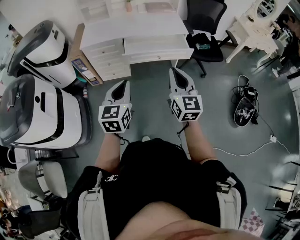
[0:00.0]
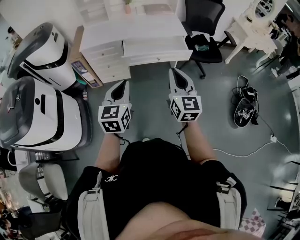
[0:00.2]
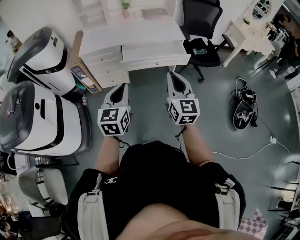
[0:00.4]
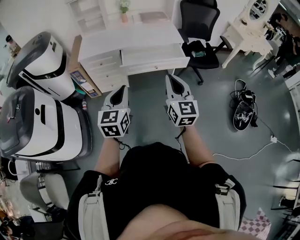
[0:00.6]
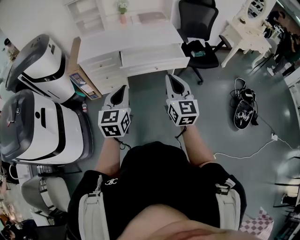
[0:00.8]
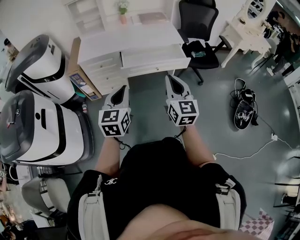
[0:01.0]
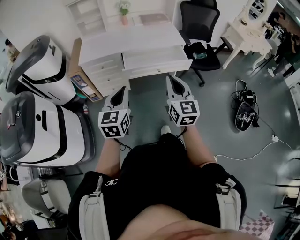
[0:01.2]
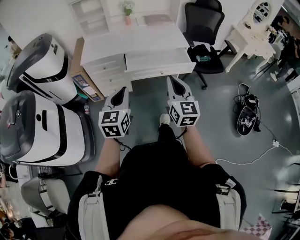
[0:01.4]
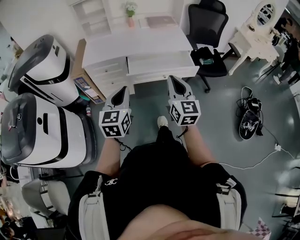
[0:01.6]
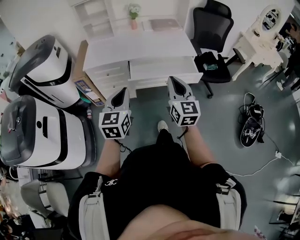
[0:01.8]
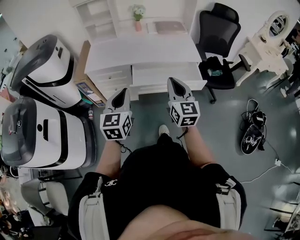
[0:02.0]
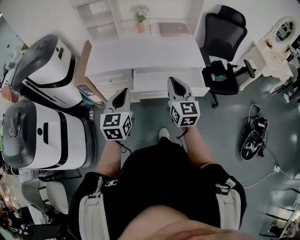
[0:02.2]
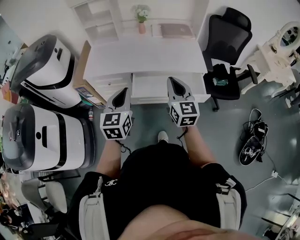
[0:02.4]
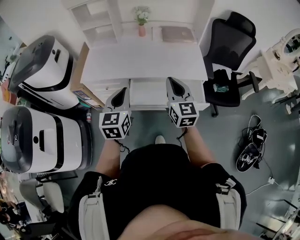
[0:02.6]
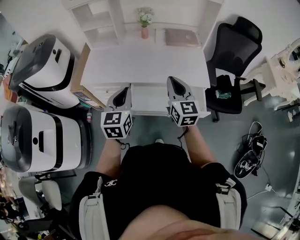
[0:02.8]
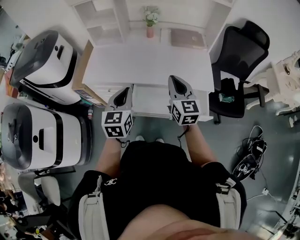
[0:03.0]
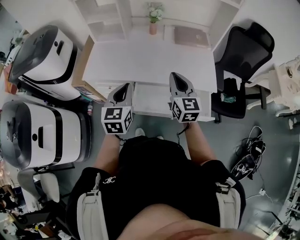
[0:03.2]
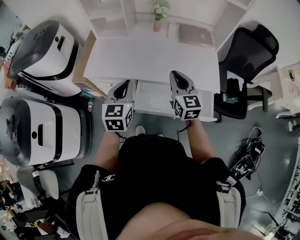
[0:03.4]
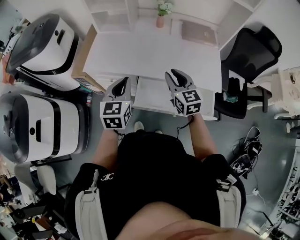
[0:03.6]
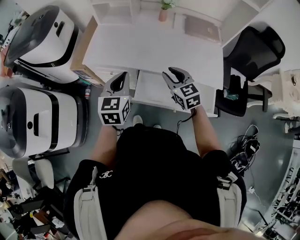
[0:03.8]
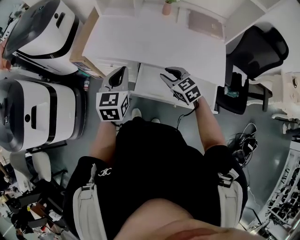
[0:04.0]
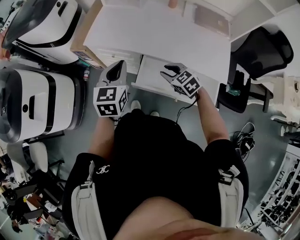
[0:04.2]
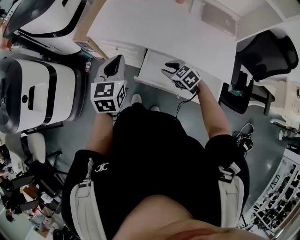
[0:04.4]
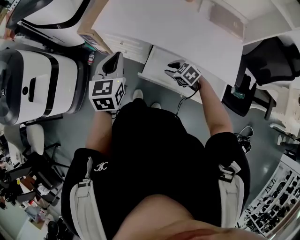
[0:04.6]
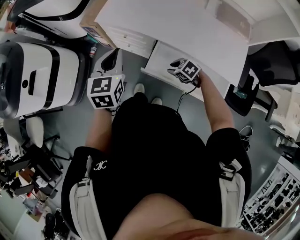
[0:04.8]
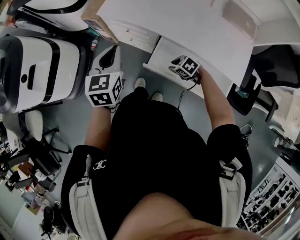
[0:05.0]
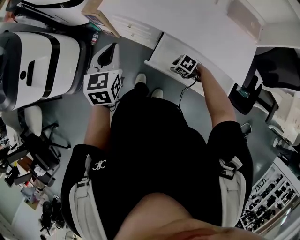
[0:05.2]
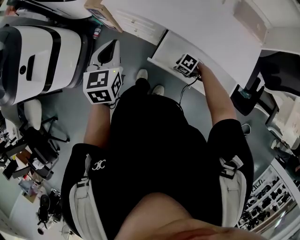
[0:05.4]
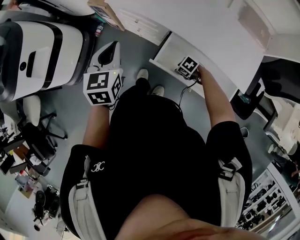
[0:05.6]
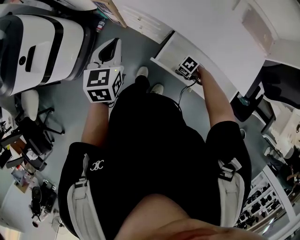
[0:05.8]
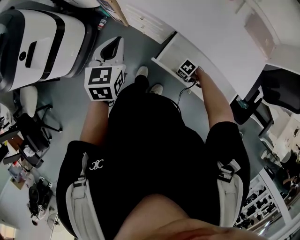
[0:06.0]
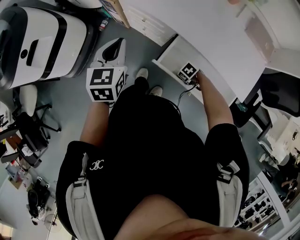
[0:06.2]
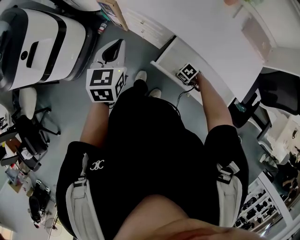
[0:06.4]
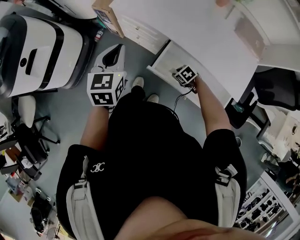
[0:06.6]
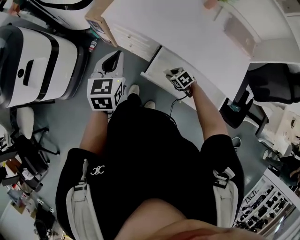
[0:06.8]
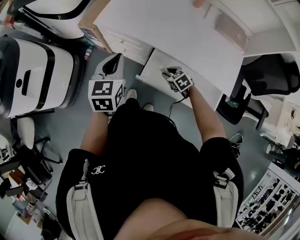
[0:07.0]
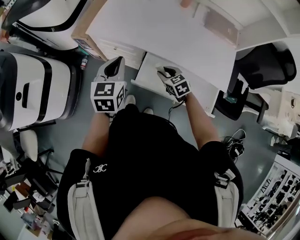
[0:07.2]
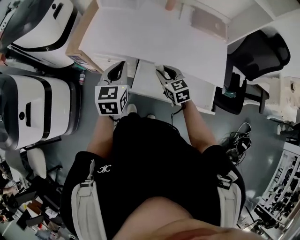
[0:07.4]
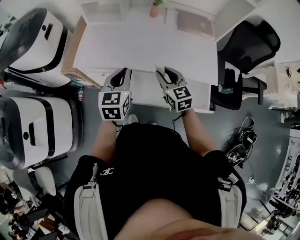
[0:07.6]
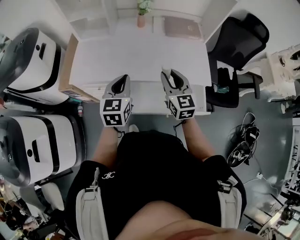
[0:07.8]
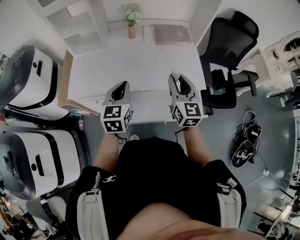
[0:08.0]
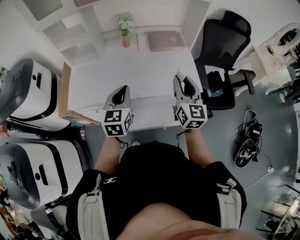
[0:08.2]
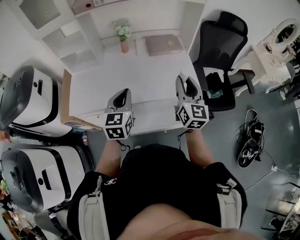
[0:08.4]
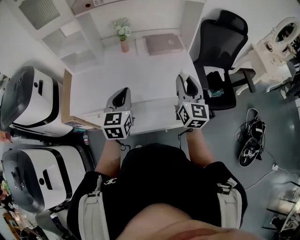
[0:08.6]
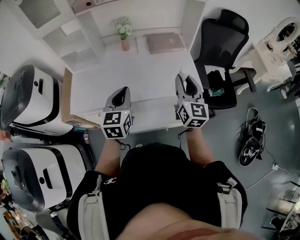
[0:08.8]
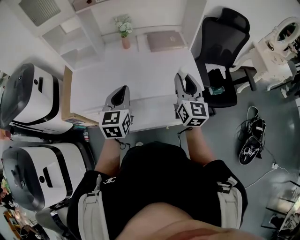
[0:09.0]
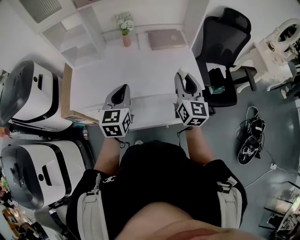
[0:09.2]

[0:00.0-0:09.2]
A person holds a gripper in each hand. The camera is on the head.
0:00.0 to 0:01.6: The two grippers go about 10 cm forward.
0:01.6 to 0:03.0: The grippers both shift forward by approximately 40 cm.
0:03.0 to 0:04.6: The left gripper changes place by roughly 15 cm. Meanwhile the right gripper heads downward, covering roughly 30 cm, tilts its fingers roughly 50 degrees downward, and opens its fingers.
0:04.6 to 0:06.2: The left gripper ends up approximately 10 cm from where it was; the right gripper goes roughly 20 cm downward, and turns by approximately 30 degrees.
0:06.2 to 0:07.6: The right gripper shifts approximately 35 cm upward, and points its fingers some 50 degrees further upward; the left gripper changes place by some 20 cm, and changes its angle by about 30 degrees.
0:07.6 to 0:09.2: The left gripper moves to the right and upward, some 10 cm. The right gripper is displaced to the right and upward by roughly 25 cm, and changes its angle by some 40 degrees.

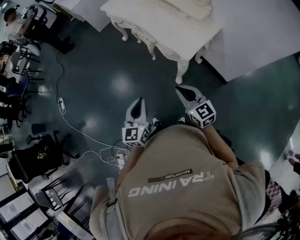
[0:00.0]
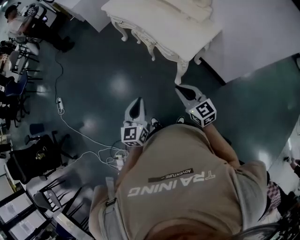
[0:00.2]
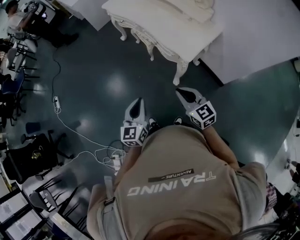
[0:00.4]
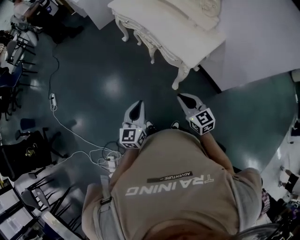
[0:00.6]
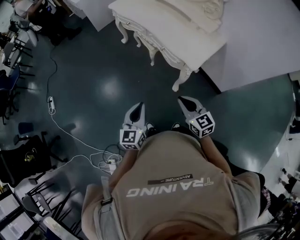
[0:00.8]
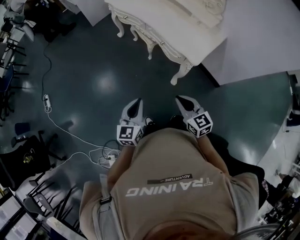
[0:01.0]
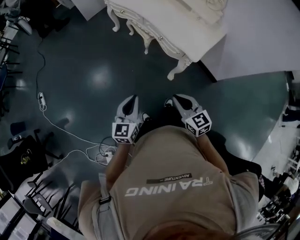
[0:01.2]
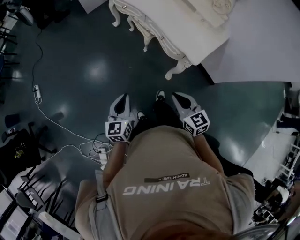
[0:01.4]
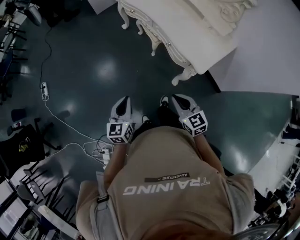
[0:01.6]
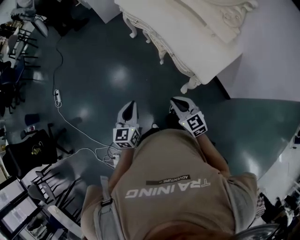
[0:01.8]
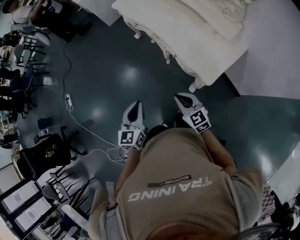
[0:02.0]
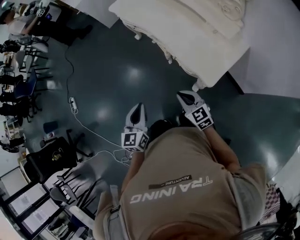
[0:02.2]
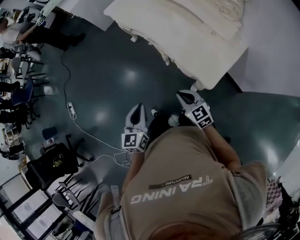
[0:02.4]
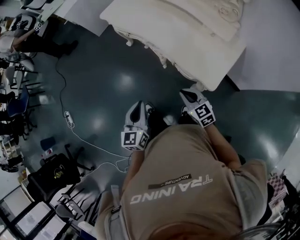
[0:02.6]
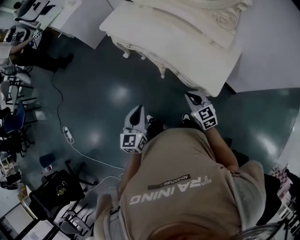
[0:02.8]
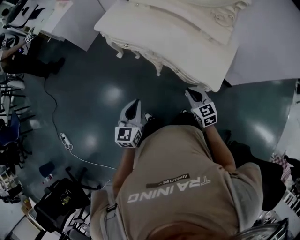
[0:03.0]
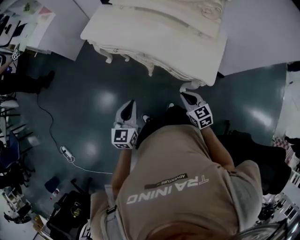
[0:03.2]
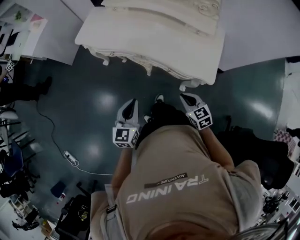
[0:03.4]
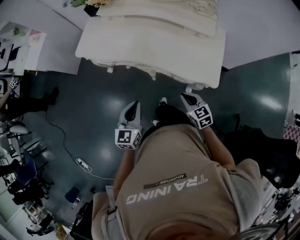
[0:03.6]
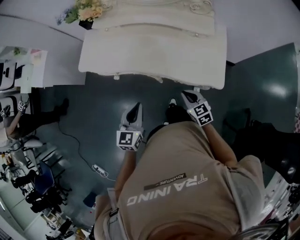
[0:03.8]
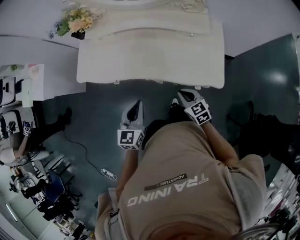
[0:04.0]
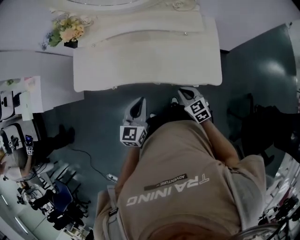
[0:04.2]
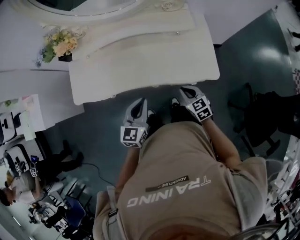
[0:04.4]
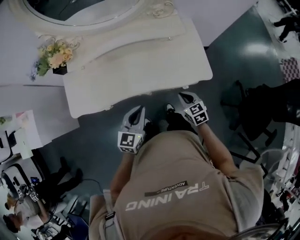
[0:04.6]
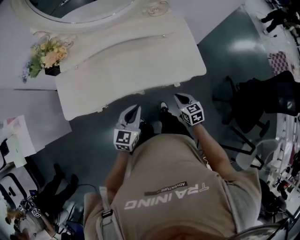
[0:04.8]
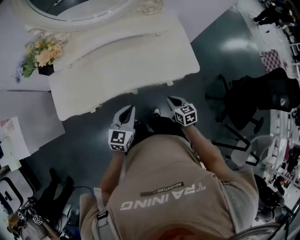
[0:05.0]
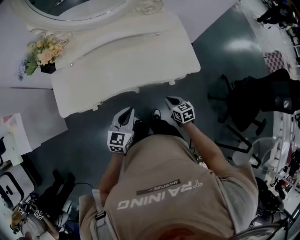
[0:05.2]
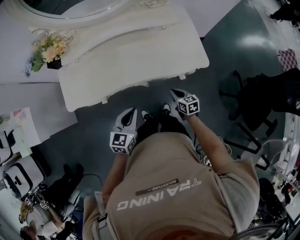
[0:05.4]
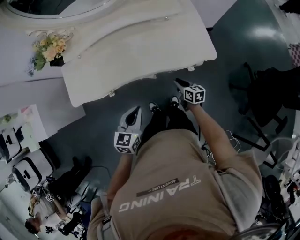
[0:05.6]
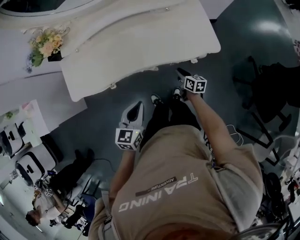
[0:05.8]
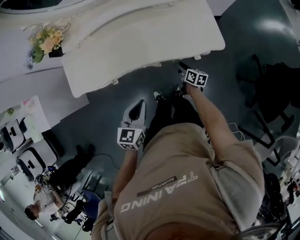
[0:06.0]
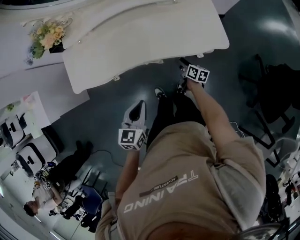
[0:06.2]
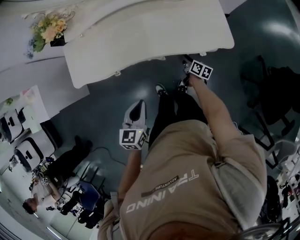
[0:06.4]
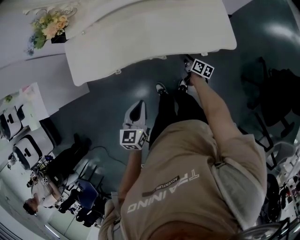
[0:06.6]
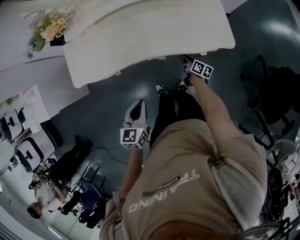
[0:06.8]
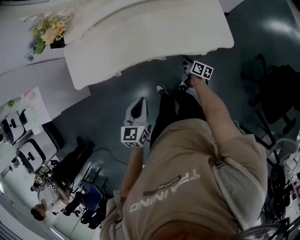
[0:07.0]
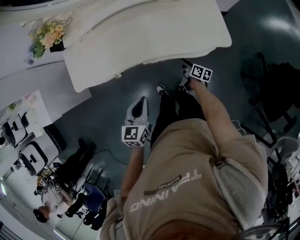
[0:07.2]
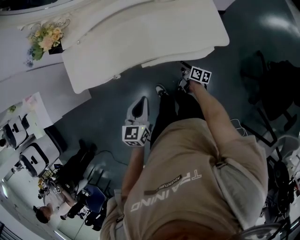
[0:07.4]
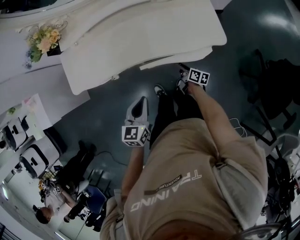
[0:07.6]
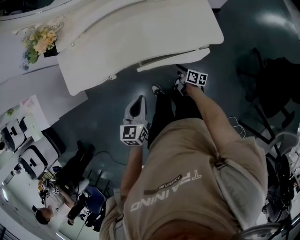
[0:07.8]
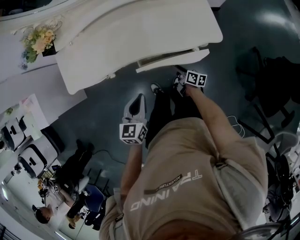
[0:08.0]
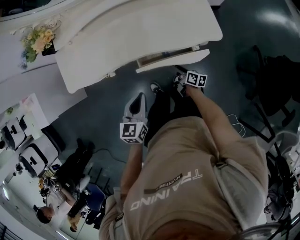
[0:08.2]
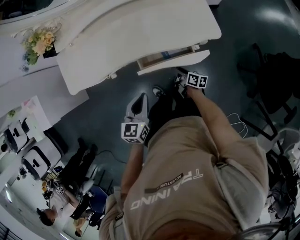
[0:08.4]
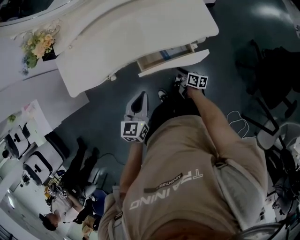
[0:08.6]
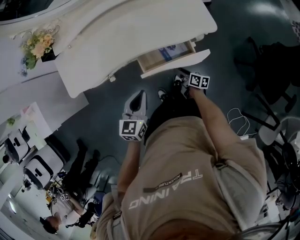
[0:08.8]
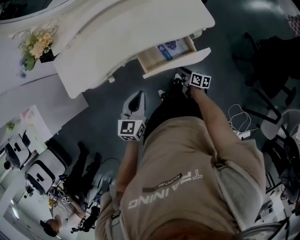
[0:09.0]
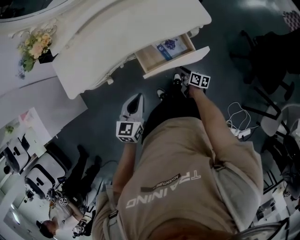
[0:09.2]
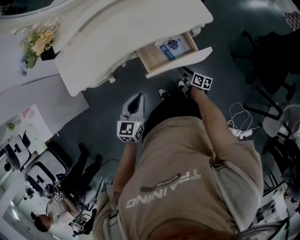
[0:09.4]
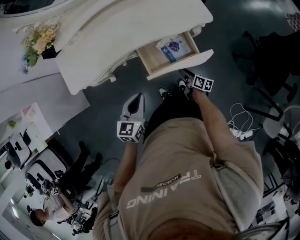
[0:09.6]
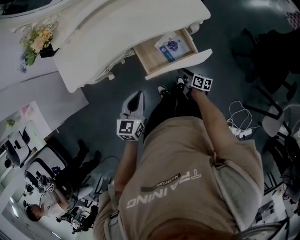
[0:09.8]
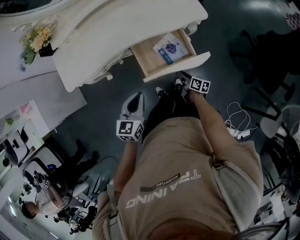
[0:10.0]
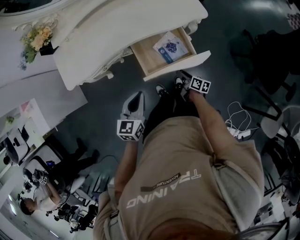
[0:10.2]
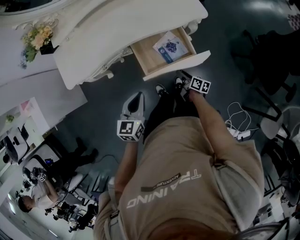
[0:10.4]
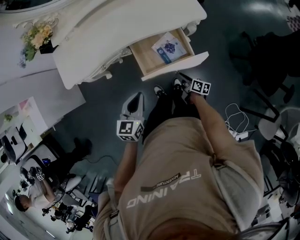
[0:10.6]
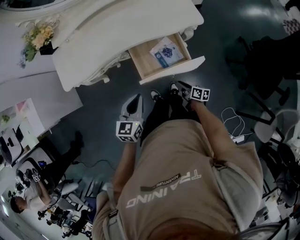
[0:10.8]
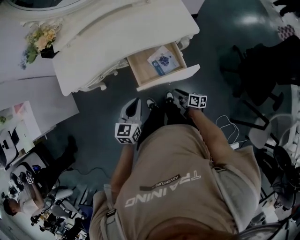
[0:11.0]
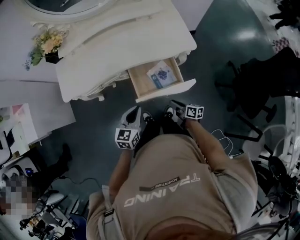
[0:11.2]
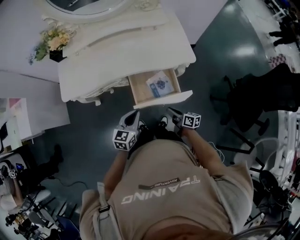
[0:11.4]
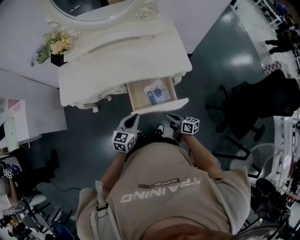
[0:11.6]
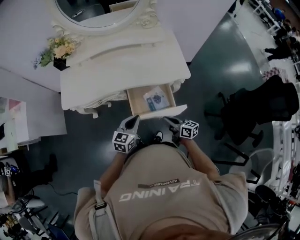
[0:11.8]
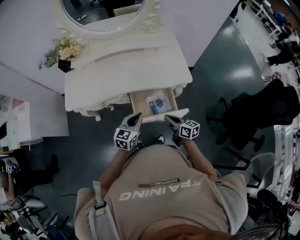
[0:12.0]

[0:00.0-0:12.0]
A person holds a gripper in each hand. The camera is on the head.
0:00.0 to 0:01.6: The two grippers go some 20 cm forward, to the left and downward.
0:01.6 to 0:03.0: The left gripper moves about 25 cm, and turns by some 30 degrees. Meanwhile the right gripper ends up about 20 cm from where it was, and rotates roughly 20 degrees.
0:03.0 to 0:04.4: The right gripper shifts by roughly 20 cm, and rotates about 30 degrees; the left gripper ends up approximately 30 cm from where it was, and turns by some 40 degrees.
0:04.4 to 0:06.0: The left gripper travels backward and downward by roughly 10 cm. Meanwhile the right gripper travels downward by approximately 20 cm, rolls clockwise, seen from behind, by roughly 60 degrees, and opens its fingers.
0:07.6 to 0:09.0: The right gripper is displaced backward by some 10 cm.
0:09.0 to 0:10.4: The two grippers go some 10 cm backward.
0:10.4 to 0:12.0: The right gripper goes roughly 25 cm upward, changes its angle by roughly 40 degrees, and closes its fingers; the left gripper heads upward, covering approximately 5 cm.

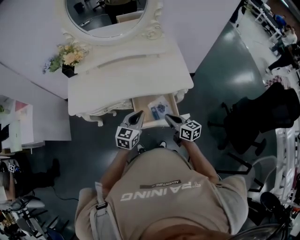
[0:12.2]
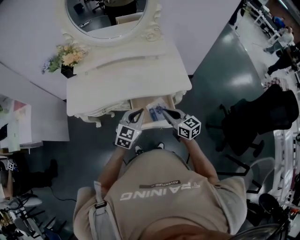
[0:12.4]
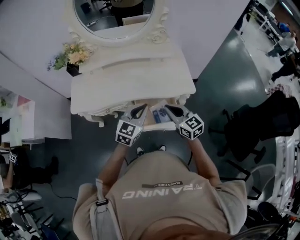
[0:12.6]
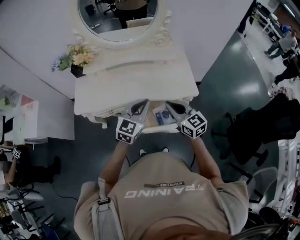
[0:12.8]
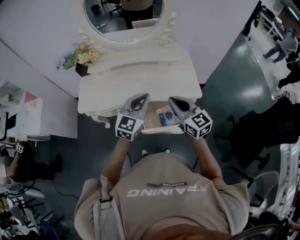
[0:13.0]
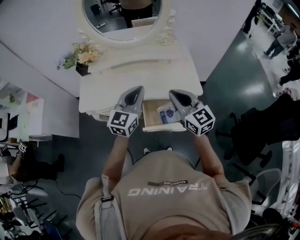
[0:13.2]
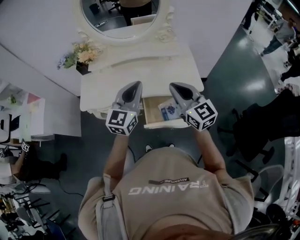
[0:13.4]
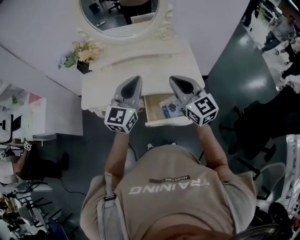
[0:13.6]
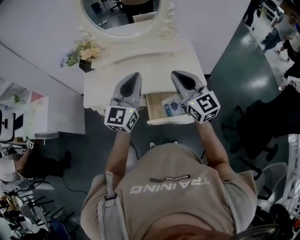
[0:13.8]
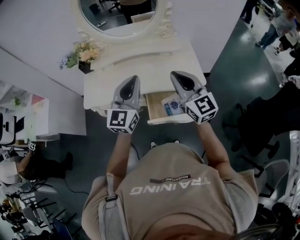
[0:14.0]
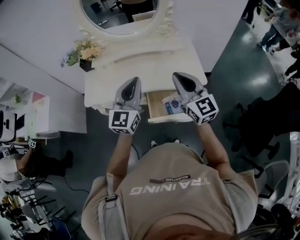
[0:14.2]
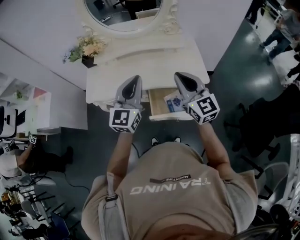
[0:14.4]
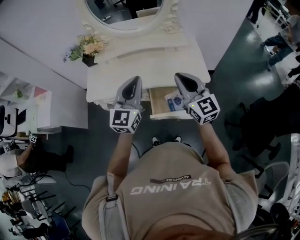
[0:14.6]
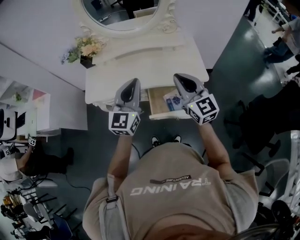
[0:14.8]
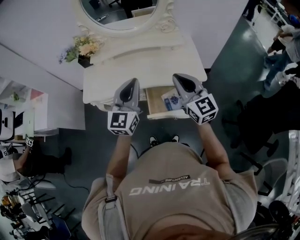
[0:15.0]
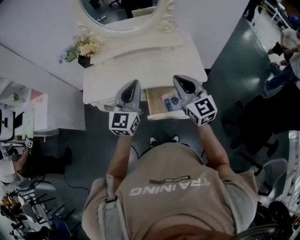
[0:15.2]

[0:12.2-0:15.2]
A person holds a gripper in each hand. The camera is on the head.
0:12.2 to 0:13.8: Both grippers move upward, about 25 cm. The left gripper turns by some 30 degrees. The right gripper turns by roughly 40 degrees.
0:13.8 to 0:15.2: The left gripper shifts roughly 5 cm downward.
